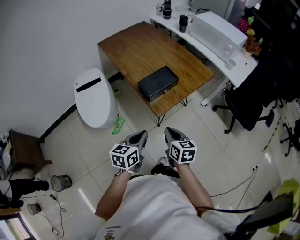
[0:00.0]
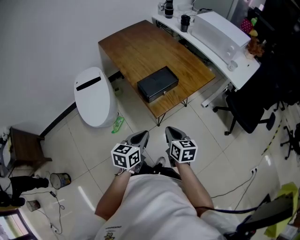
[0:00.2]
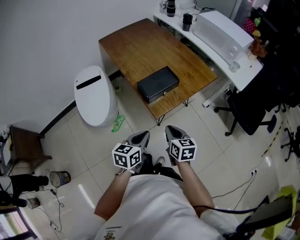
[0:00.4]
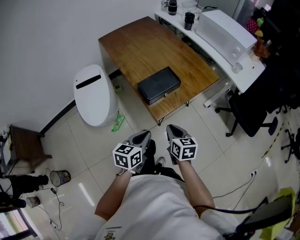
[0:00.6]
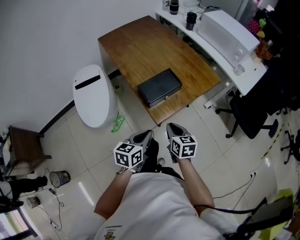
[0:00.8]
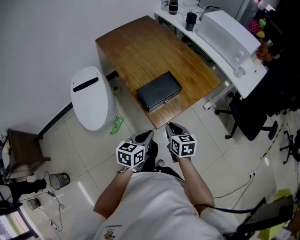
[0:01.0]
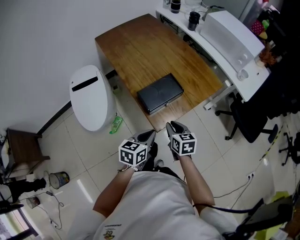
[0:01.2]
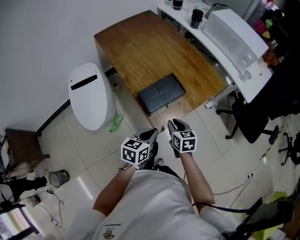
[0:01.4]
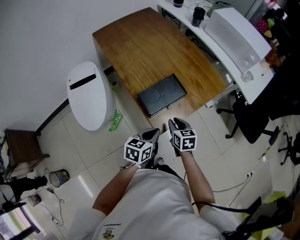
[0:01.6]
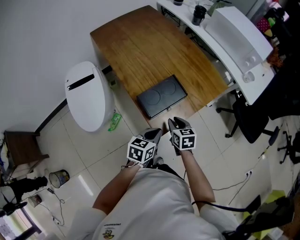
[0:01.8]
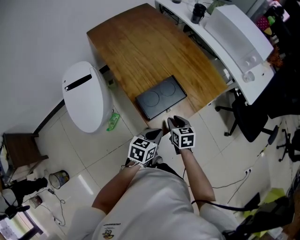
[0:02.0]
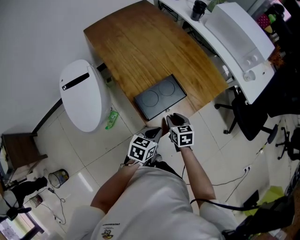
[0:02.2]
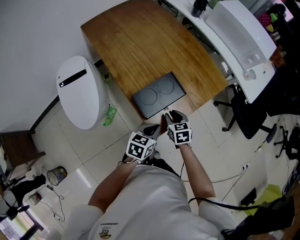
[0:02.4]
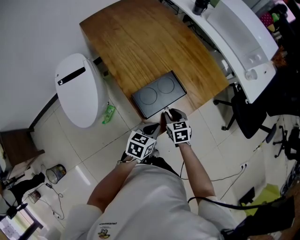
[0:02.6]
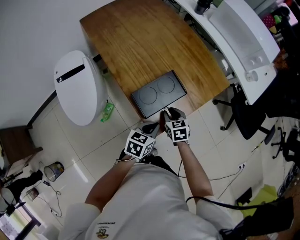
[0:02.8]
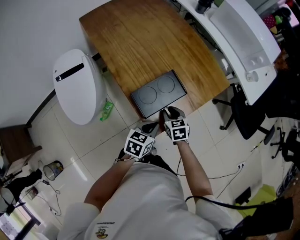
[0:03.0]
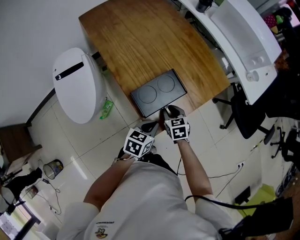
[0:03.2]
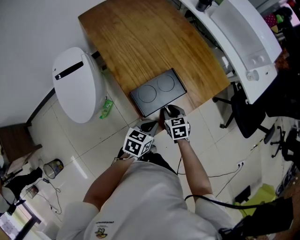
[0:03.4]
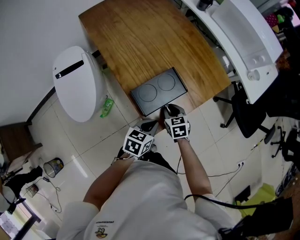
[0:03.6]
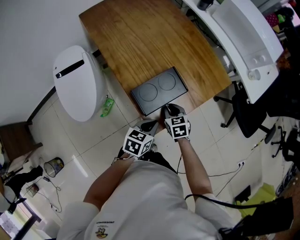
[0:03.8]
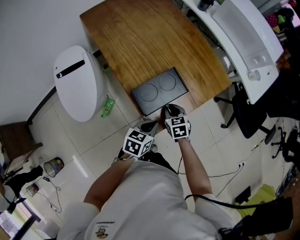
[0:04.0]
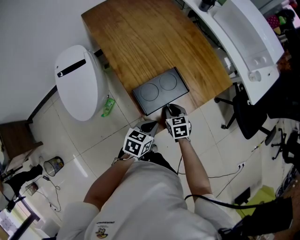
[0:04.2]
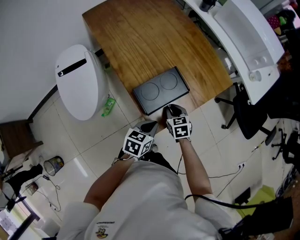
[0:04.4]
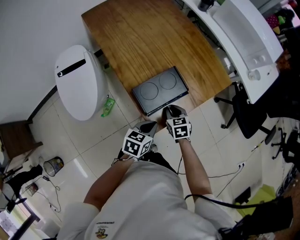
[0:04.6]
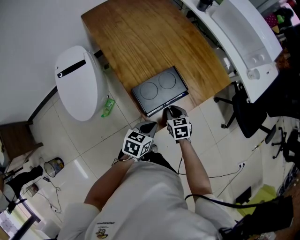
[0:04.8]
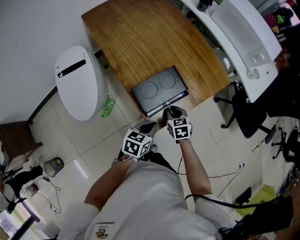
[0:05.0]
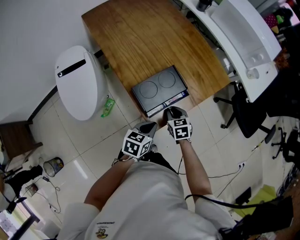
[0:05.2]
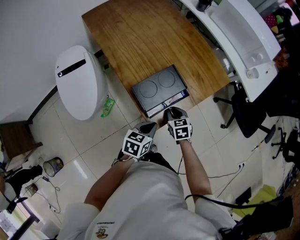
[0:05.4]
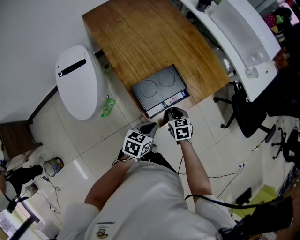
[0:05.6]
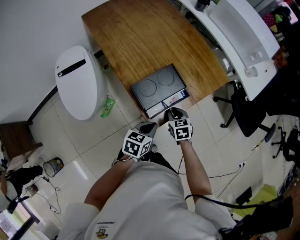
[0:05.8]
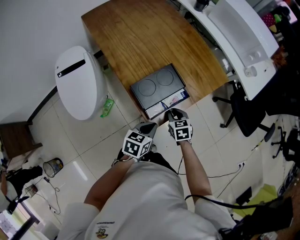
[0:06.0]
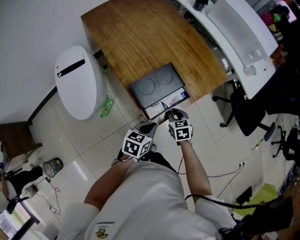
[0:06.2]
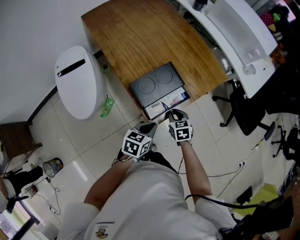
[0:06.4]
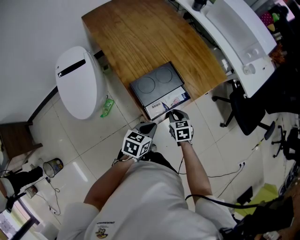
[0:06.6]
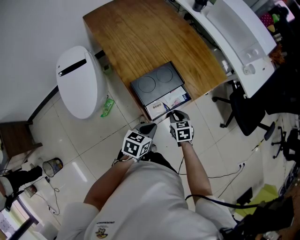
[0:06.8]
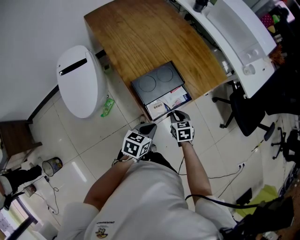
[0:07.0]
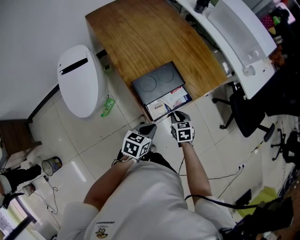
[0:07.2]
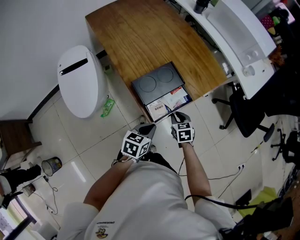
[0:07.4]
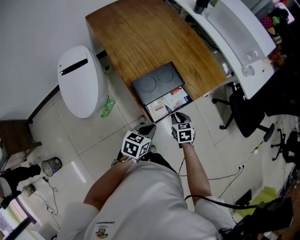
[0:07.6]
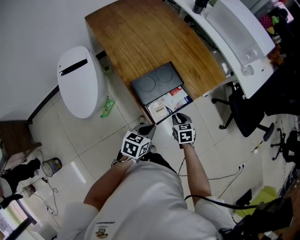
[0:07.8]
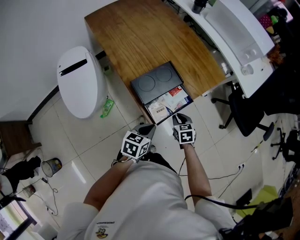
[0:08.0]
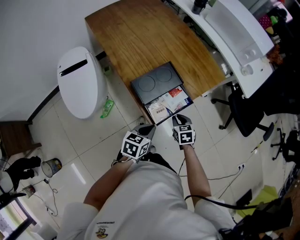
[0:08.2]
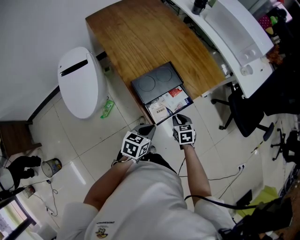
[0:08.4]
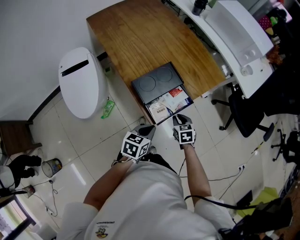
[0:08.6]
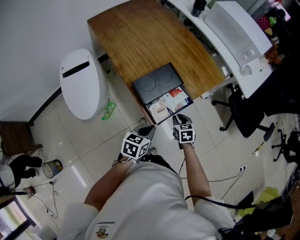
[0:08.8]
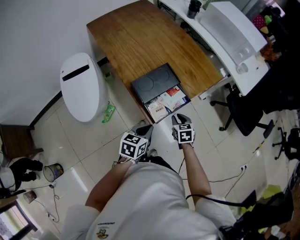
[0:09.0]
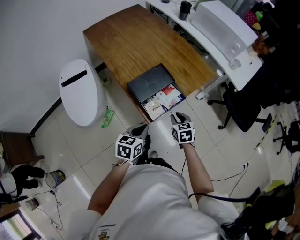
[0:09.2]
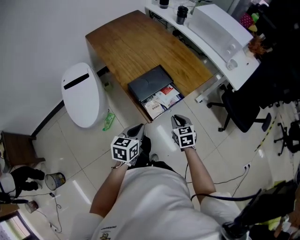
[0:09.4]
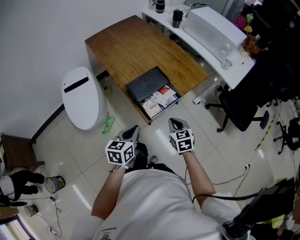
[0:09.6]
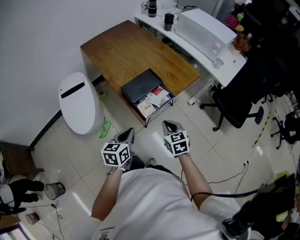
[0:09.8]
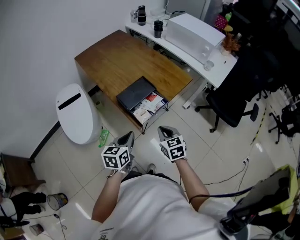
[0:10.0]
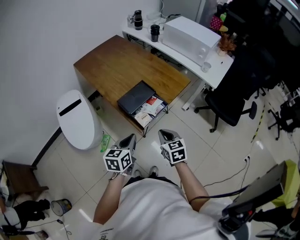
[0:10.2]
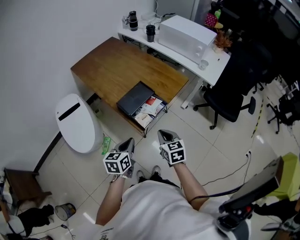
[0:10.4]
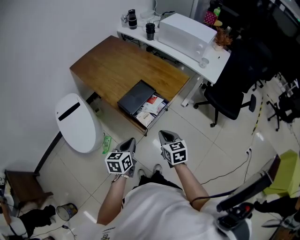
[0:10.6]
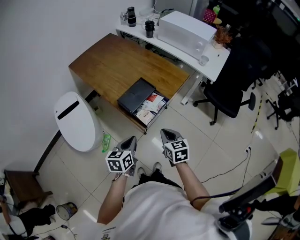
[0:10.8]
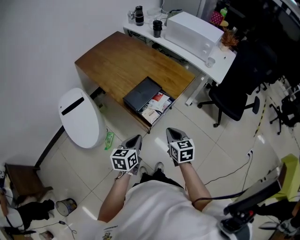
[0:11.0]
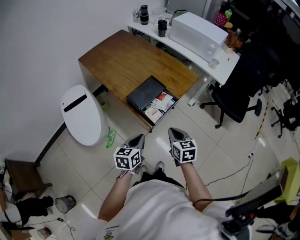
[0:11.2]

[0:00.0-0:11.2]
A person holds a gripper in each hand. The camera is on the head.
0:00.0 to 0:01.6: The two grippers go roughly 20 cm forward and downward.
0:01.6 to 0:03.2: Both grippers move forward and downward, roughly 10 cm.
0:03.2 to 0:04.8: The grippers move only a little.
0:04.8 to 0:06.4: The right gripper shifts by about 5 cm.
0:06.4 to 0:08.0: The grippers stay close to where they were, moving slightly.
0:08.0 to 0:09.6: The grippers both shift upward and backward by approximately 15 cm.
0:09.6 to 0:11.2: The right gripper is displaced upward and backward by some 10 cm.

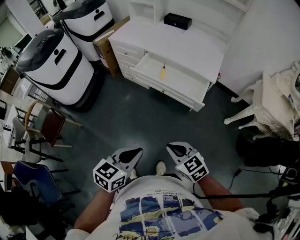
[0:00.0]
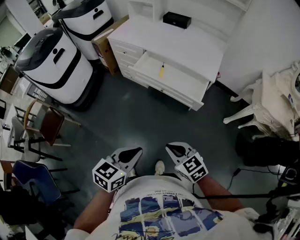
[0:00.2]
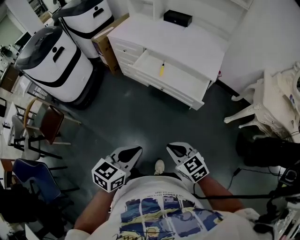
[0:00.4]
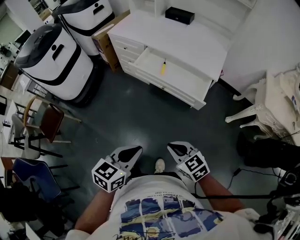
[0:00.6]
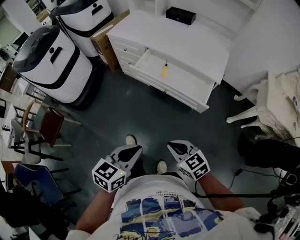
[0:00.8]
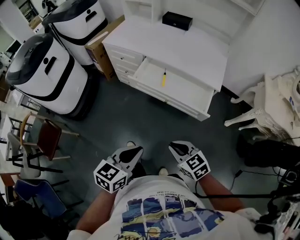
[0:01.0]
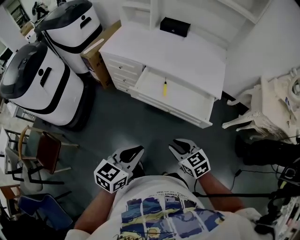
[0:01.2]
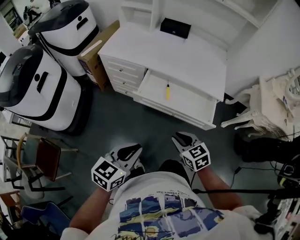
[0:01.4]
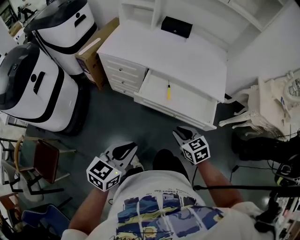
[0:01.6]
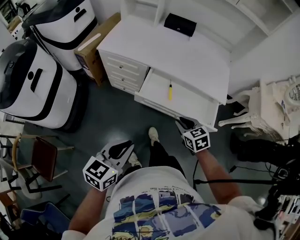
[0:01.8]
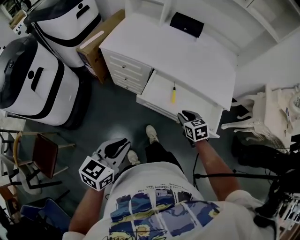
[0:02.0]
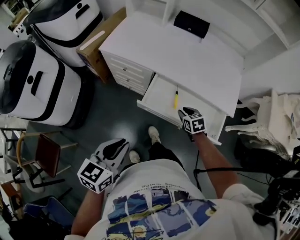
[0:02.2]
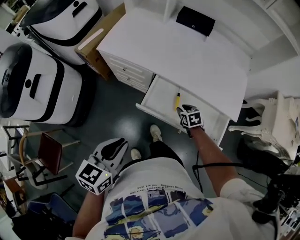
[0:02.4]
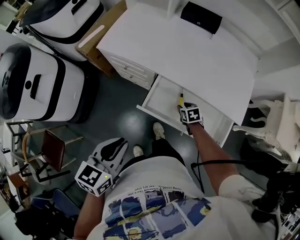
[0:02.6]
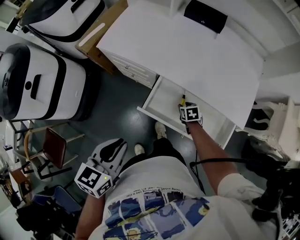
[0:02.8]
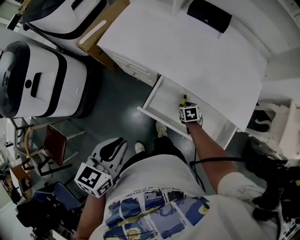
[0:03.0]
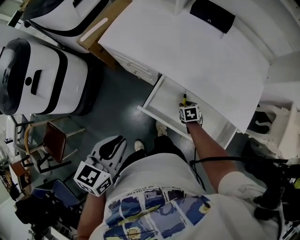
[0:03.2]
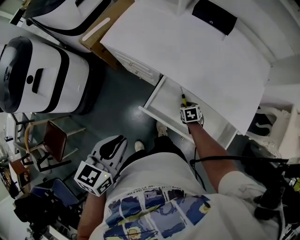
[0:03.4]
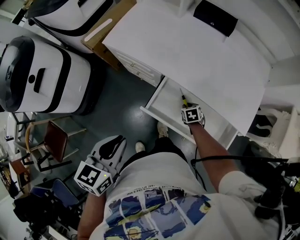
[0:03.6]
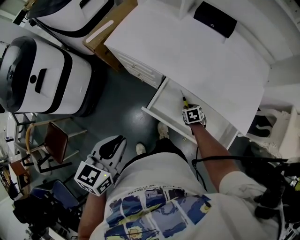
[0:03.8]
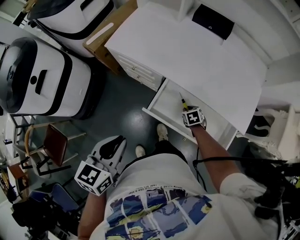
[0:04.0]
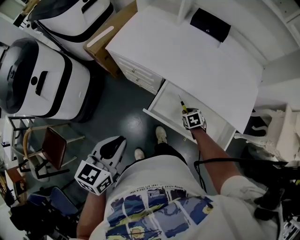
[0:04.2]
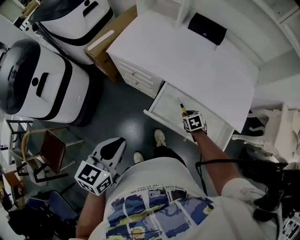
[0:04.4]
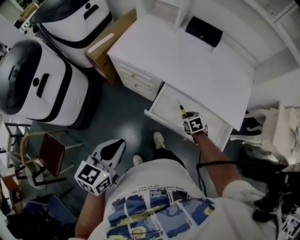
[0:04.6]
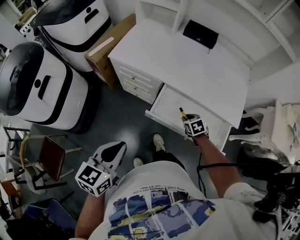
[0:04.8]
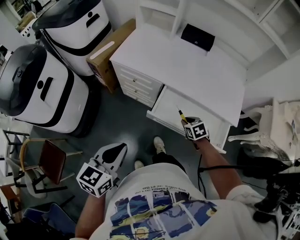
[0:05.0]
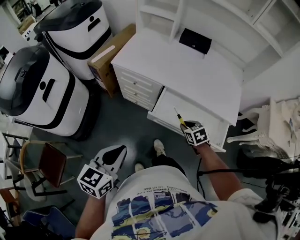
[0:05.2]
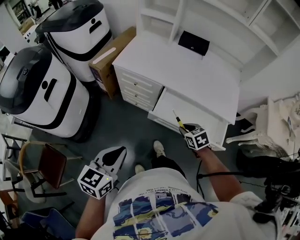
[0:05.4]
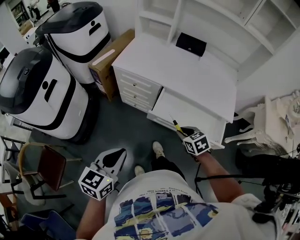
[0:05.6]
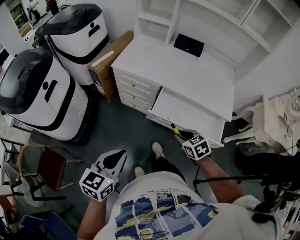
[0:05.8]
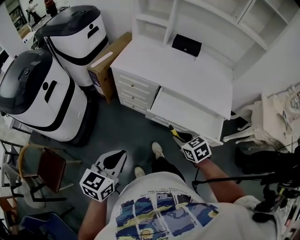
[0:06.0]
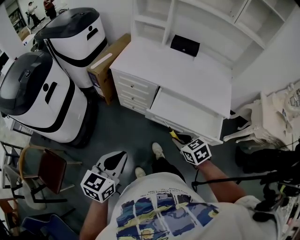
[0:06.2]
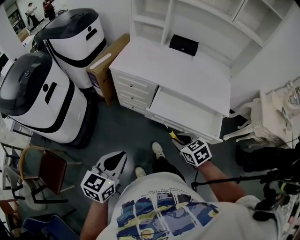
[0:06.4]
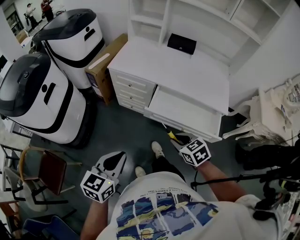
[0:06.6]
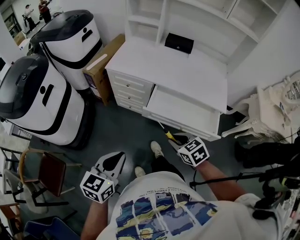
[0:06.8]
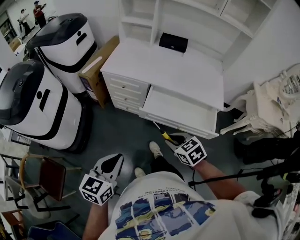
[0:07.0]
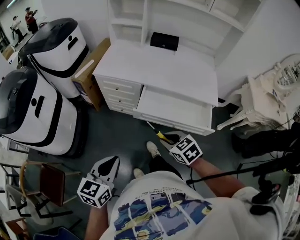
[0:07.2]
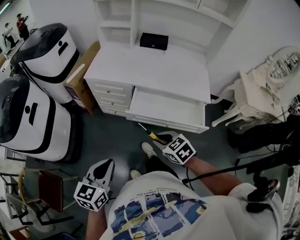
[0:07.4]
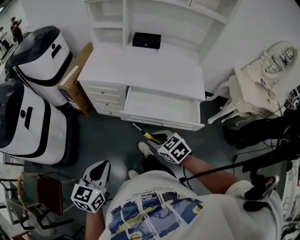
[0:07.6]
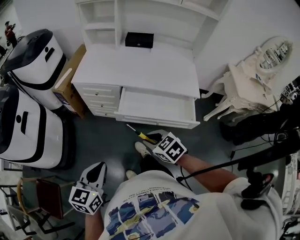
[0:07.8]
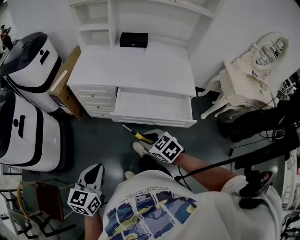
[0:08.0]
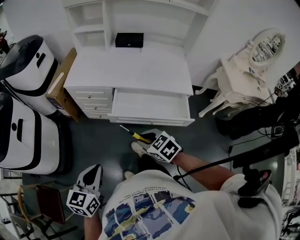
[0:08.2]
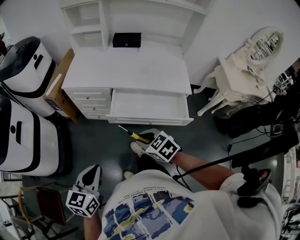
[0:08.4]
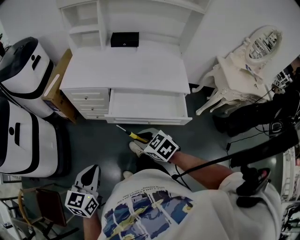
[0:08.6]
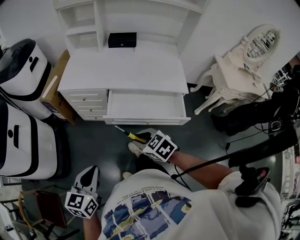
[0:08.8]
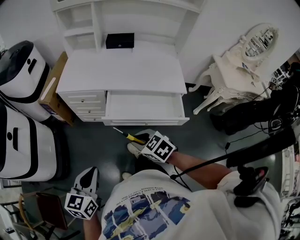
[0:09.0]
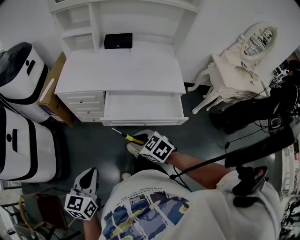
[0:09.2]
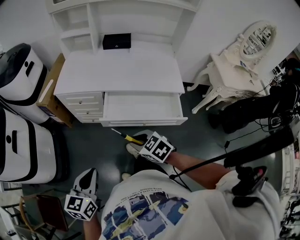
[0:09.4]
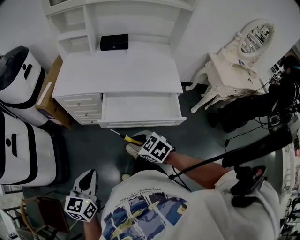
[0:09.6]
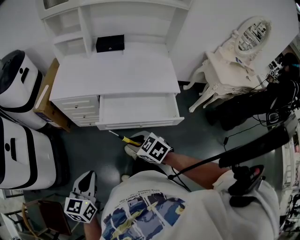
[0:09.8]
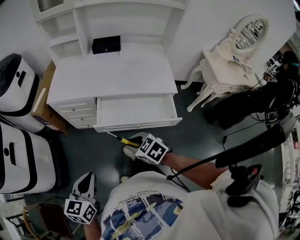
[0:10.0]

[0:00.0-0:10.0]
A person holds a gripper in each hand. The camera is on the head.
0:00.0 to 0:01.4: The left gripper moves forward and to the left, roughly 25 cm. Meanwhile the right gripper shifts about 25 cm forward, and rotates about 20 degrees.
0:01.4 to 0:02.8: The right gripper shifts about 40 cm forward and downward, and rotates approximately 30 degrees. The left gripper moves forward, approximately 20 cm, and turns by some 20 degrees.
0:02.8 to 0:04.2: The grippers stay close to where they were, moving slightly.
0:04.2 to 0:05.8: The left gripper travels backward and to the left by about 15 cm; the right gripper travels upward, backward and to the left by some 30 cm.
0:05.8 to 0:07.2: The right gripper moves backward, roughly 5 cm.
0:07.2 to 0:10.0: The grippers move only a little.

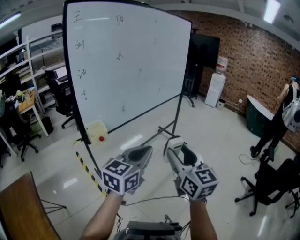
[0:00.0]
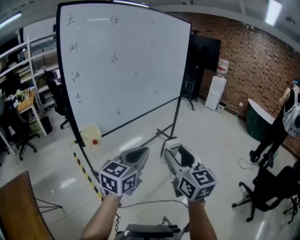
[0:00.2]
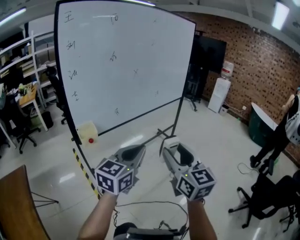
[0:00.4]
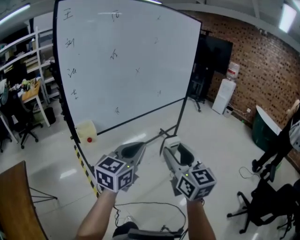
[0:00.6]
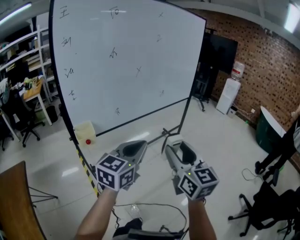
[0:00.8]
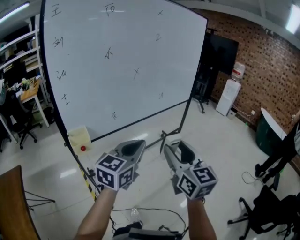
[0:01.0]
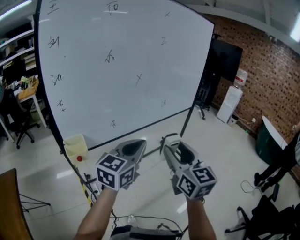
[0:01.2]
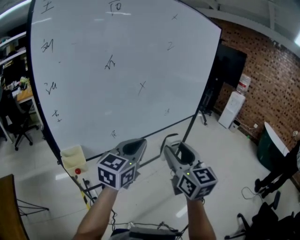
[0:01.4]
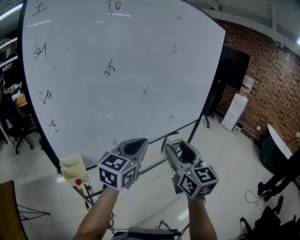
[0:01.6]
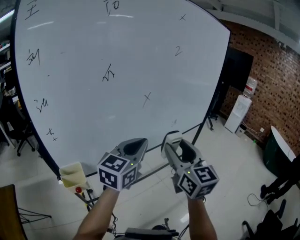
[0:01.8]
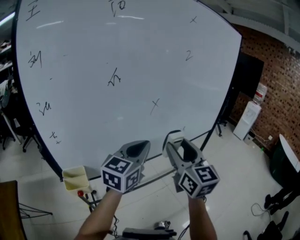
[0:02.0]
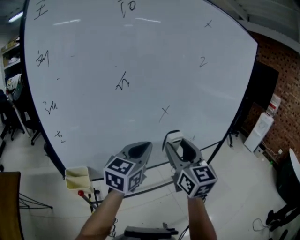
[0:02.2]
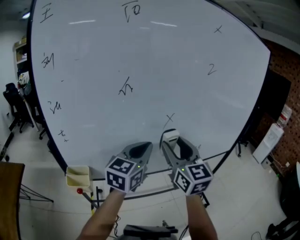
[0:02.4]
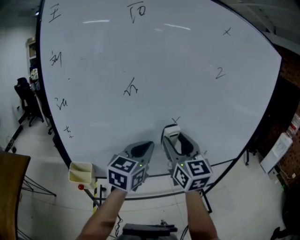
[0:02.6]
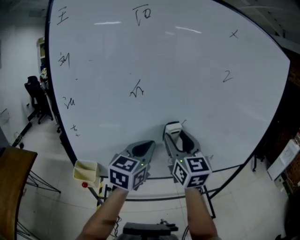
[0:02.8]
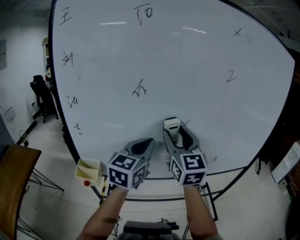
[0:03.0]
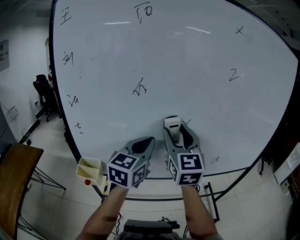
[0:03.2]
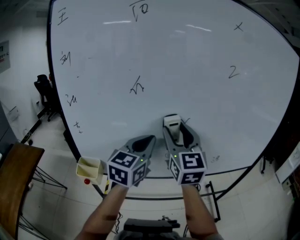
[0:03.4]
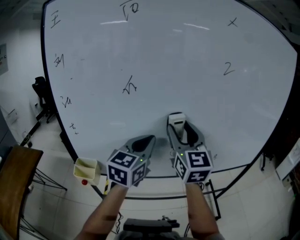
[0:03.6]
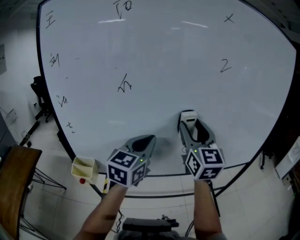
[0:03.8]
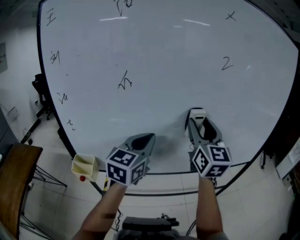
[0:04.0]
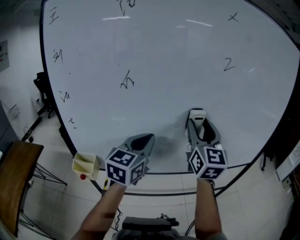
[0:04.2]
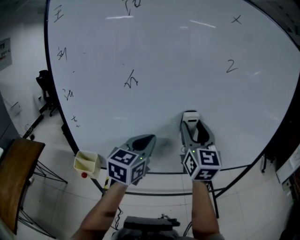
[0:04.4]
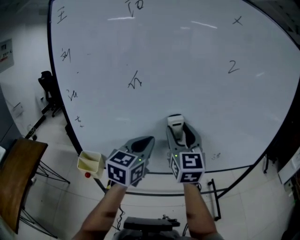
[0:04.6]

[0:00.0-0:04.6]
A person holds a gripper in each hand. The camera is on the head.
0:00.0 to 0:01.6: The two grippers go about 40 cm forward.
0:01.6 to 0:03.0: The left gripper ends up roughly 15 cm from where it was, and changes its angle by about 40 degrees; the right gripper moves approximately 25 cm, and turns by roughly 30 degrees.
0:03.0 to 0:04.6: The right gripper reaches approximately 10 cm to the right, then returns.
